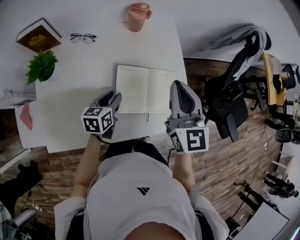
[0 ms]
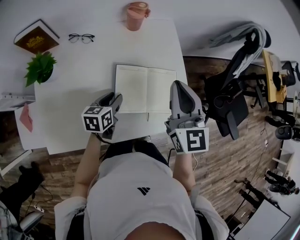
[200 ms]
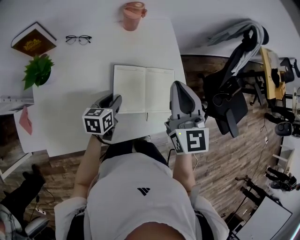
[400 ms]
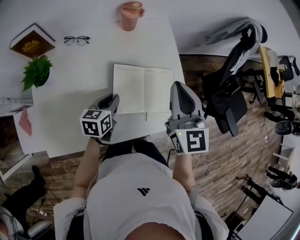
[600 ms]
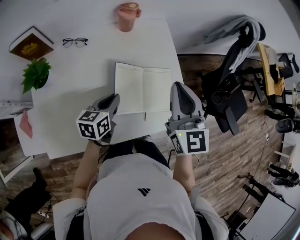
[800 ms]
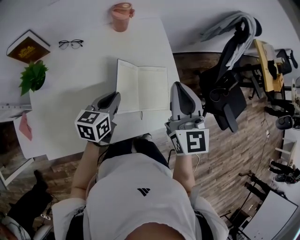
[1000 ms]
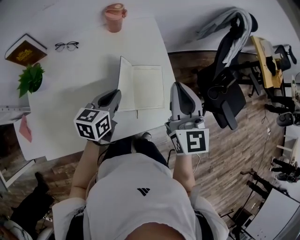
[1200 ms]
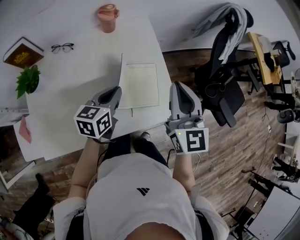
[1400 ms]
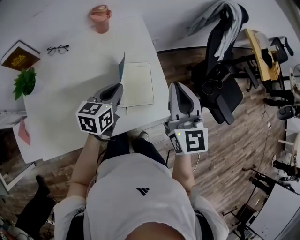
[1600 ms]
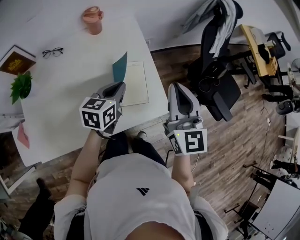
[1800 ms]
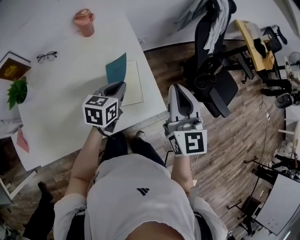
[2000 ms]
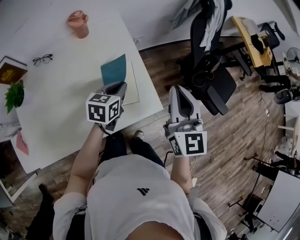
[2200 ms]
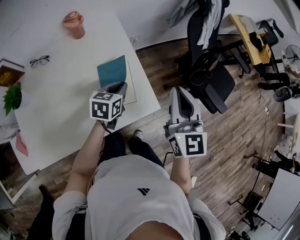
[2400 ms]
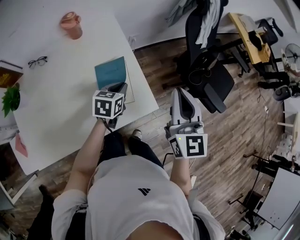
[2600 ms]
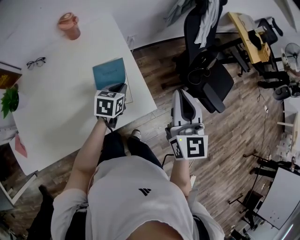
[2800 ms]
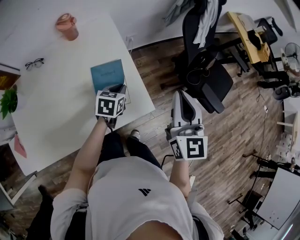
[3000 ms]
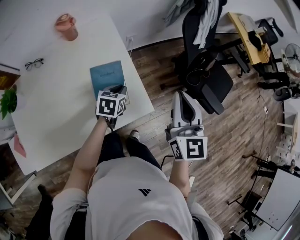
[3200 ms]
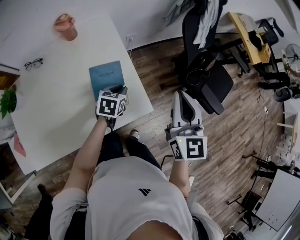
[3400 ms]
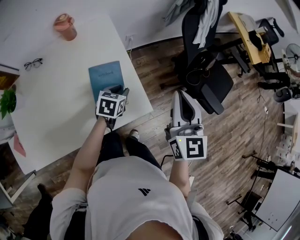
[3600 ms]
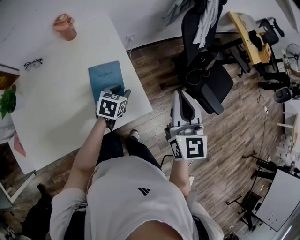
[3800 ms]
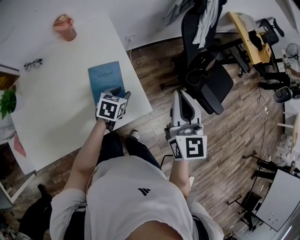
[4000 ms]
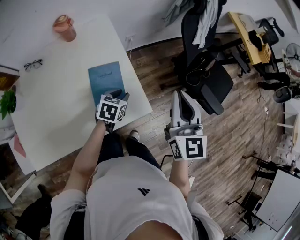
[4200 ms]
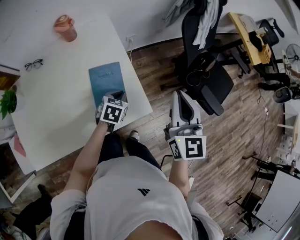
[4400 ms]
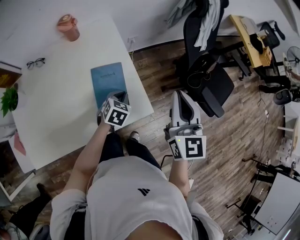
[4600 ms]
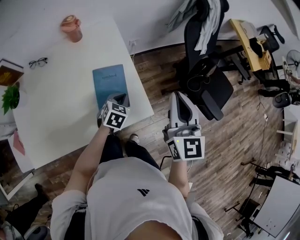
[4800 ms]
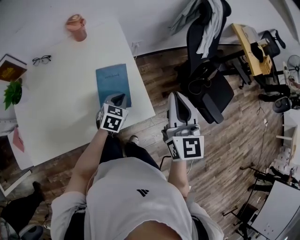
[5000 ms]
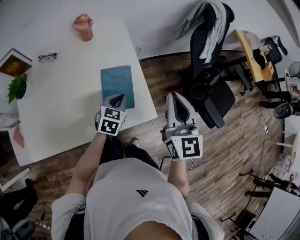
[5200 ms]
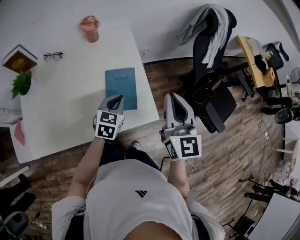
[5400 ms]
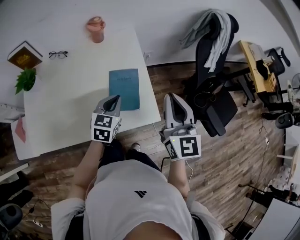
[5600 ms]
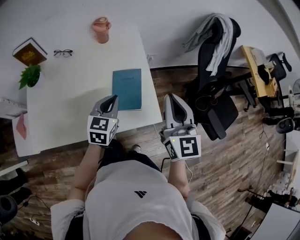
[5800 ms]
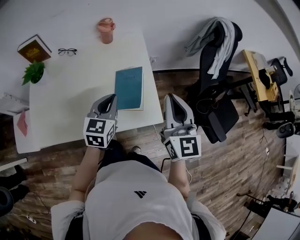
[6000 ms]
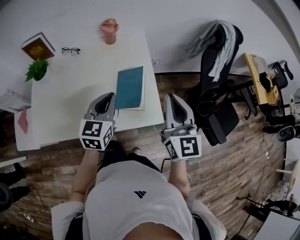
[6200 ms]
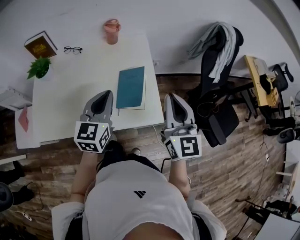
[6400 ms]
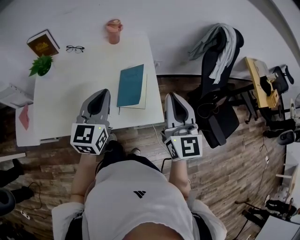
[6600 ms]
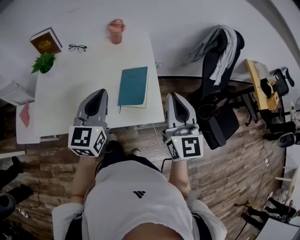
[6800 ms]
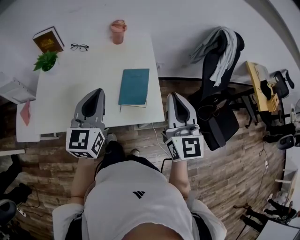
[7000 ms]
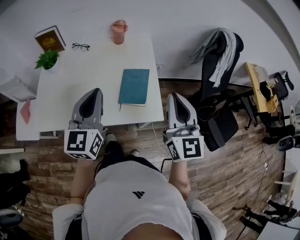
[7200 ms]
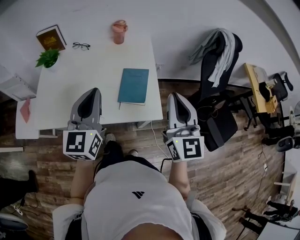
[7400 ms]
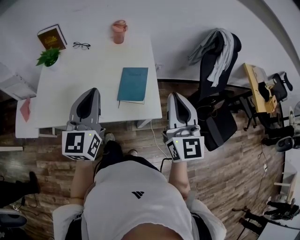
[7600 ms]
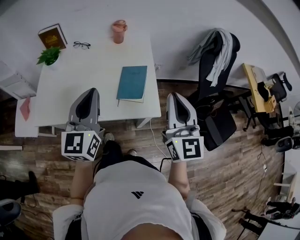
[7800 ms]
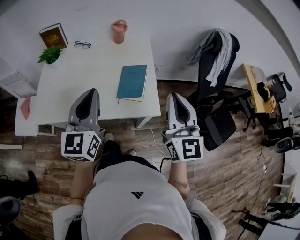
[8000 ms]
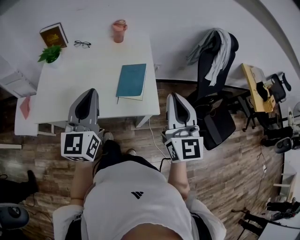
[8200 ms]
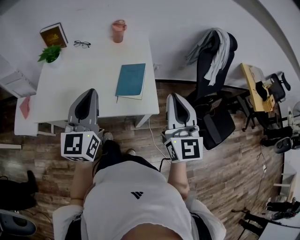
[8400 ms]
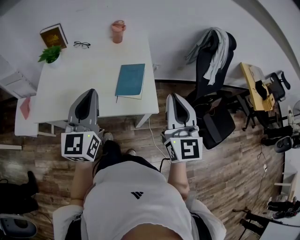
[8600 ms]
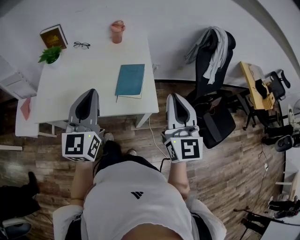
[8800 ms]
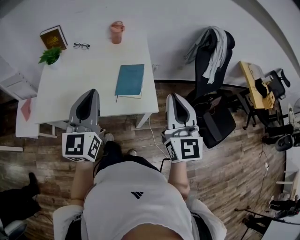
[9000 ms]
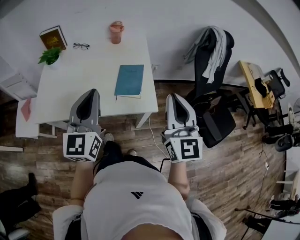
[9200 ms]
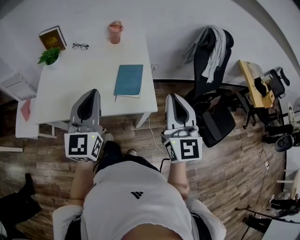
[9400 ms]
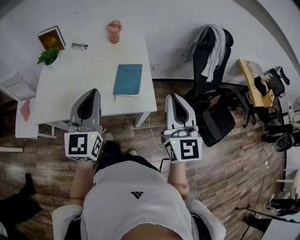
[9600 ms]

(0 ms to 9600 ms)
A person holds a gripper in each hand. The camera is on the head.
0 ms - 1600 ms: The right gripper is displaced to the right by some 10 cm. The left gripper moves to the right and upward, some 15 cm, and closes.
1600 ms - 3200 ms: The right gripper goes approximately 15 cm to the right. Meanwhile the left gripper goes approximately 20 cm to the right, downward and forward, and swivels roughly 20 degrees.
3200 ms - 4800 ms: The left gripper opens, then closes again.
4800 ms - 6400 ms: The left gripper is displaced upward and to the left by some 25 cm, and tilts its fingers some 30 degrees upward. The right gripper heads to the left, covering about 10 cm.
6400 ms - 8000 ms: The left gripper travels backward and upward by roughly 15 cm; the right gripper goes about 10 cm backward.
8000 ms - 9600 ms: The grippers stay close to where they were, moving slightly.

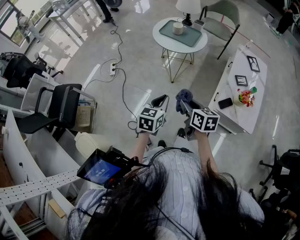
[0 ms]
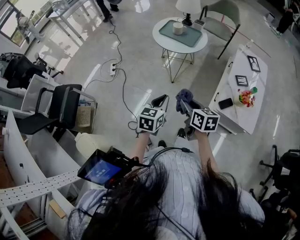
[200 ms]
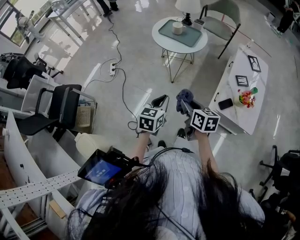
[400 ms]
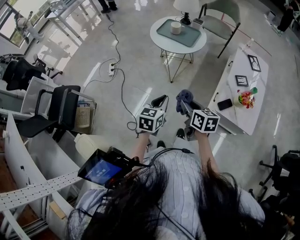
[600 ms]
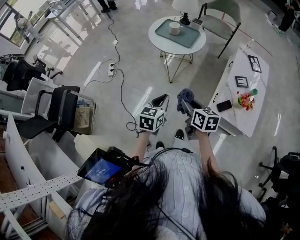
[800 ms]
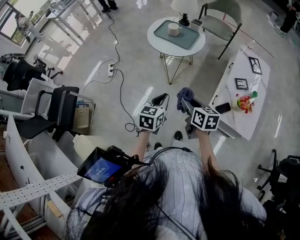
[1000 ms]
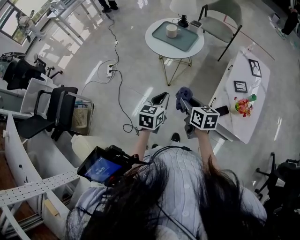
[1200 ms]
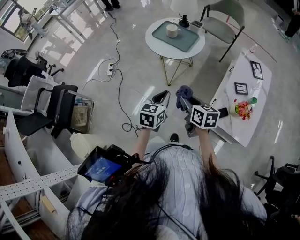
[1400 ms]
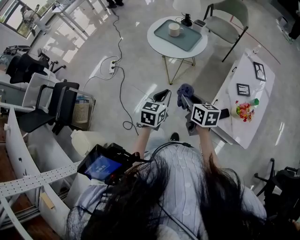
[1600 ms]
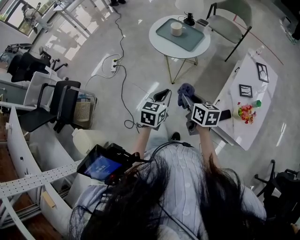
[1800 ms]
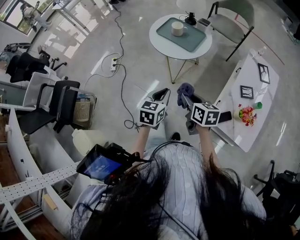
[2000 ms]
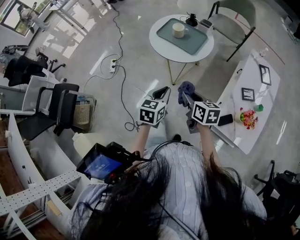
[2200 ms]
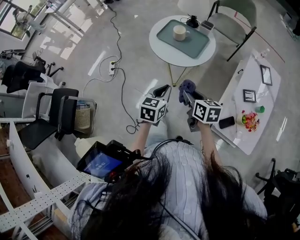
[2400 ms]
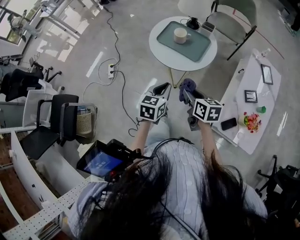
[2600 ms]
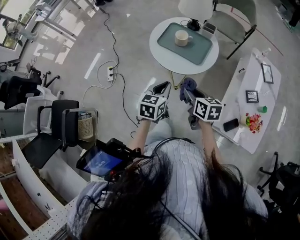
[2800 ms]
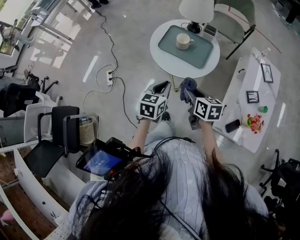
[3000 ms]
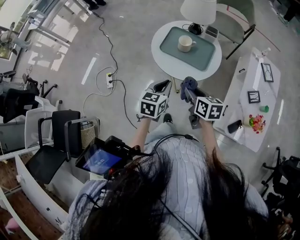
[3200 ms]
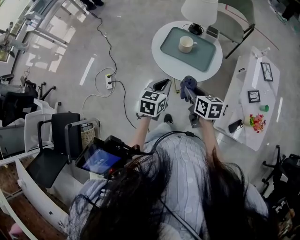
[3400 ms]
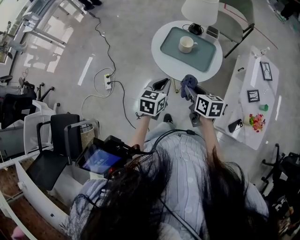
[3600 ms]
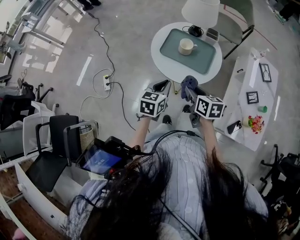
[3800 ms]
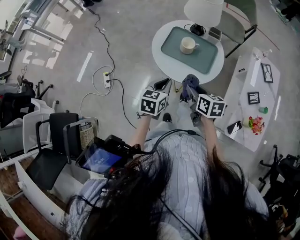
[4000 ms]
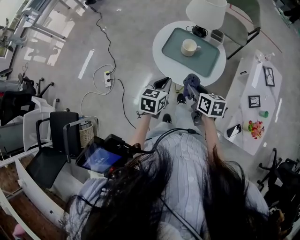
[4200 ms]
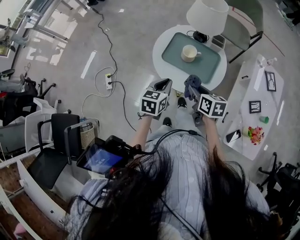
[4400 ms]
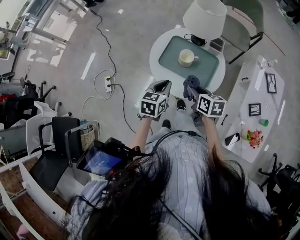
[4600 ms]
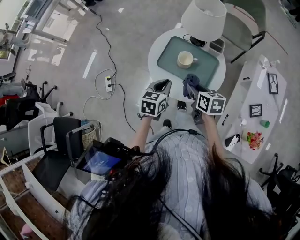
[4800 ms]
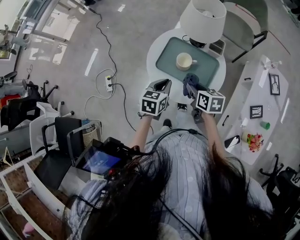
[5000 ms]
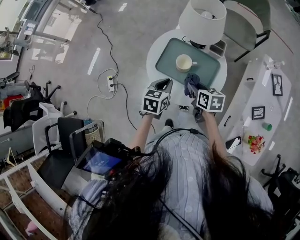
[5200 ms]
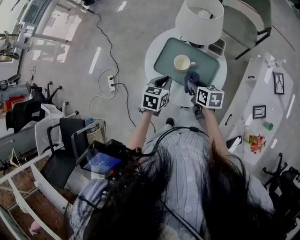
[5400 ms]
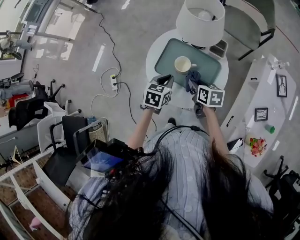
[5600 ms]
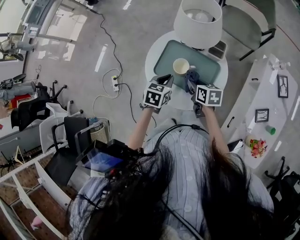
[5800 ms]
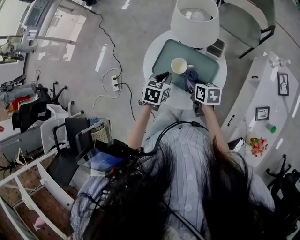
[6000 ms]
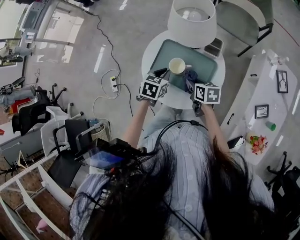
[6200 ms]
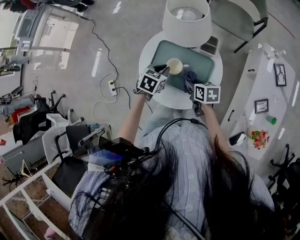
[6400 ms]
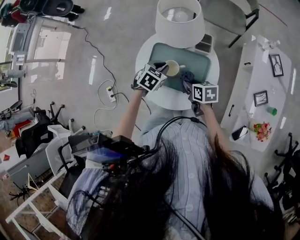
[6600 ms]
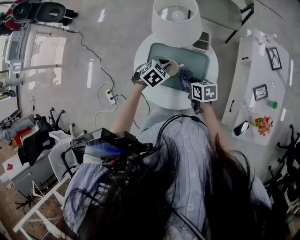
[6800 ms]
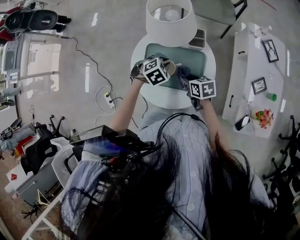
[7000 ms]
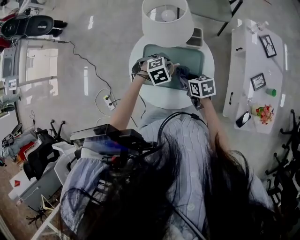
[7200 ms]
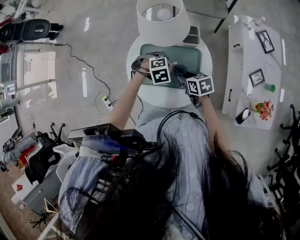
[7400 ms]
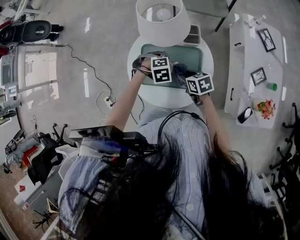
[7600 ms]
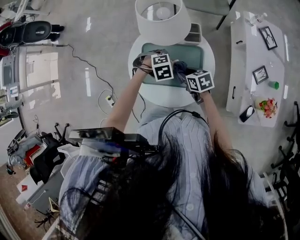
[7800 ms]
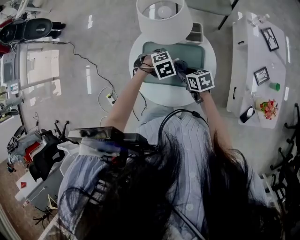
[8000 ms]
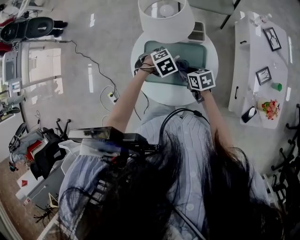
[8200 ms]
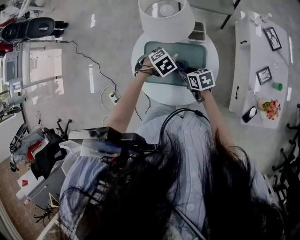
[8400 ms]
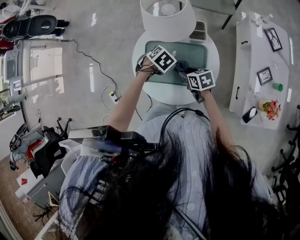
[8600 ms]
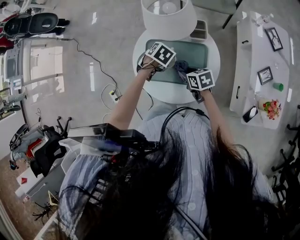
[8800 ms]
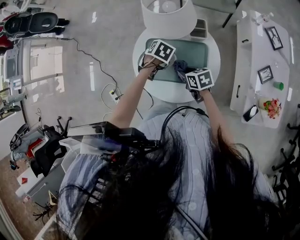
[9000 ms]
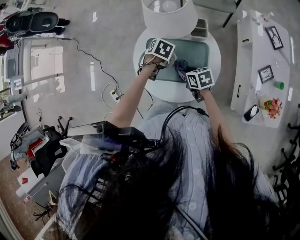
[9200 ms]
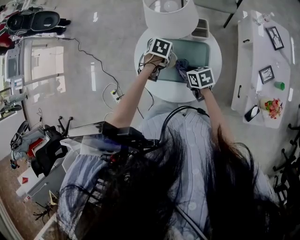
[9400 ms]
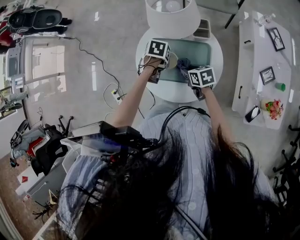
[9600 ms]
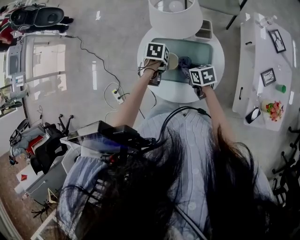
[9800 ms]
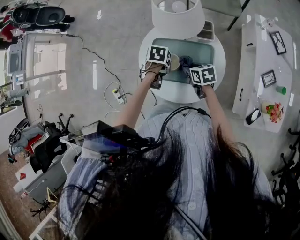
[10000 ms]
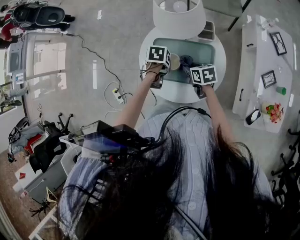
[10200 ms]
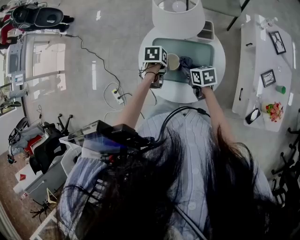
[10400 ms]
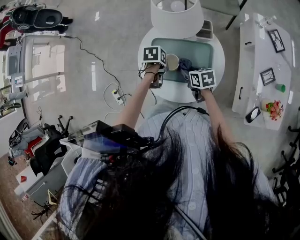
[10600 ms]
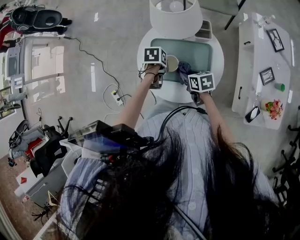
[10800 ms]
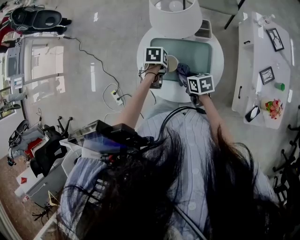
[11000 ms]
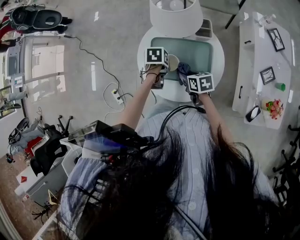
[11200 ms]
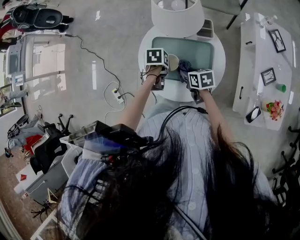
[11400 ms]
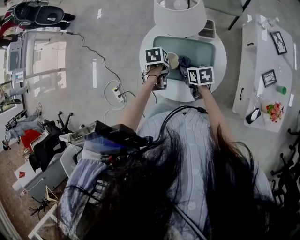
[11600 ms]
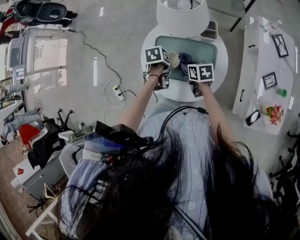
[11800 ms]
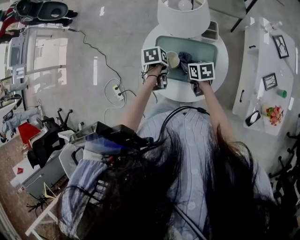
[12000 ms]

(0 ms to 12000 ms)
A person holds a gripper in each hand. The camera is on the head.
0 ms - 1600 ms: Both grippers travel together forward and to the right, approximately 15 cm.
1600 ms - 3000 ms: Both grippers travel together forward, roughly 25 cm.
3000 ms - 4400 ms: Both grippers travel together forward, about 10 cm.
4400 ms - 6000 ms: The left gripper is displaced forward, to the right and downward by about 15 cm, while the right gripper shifts about 20 cm forward, downward and to the right.
6000 ms - 7600 ms: The left gripper changes place by roughly 10 cm, and rolls clockwise, seen from behind, by roughly 80 degrees.
7600 ms - 9000 ms: The left gripper ends up some 5 cm from where it was, and rolls counterclockwise, seen from behind, by approximately 60 degrees.
9000 ms - 10400 ms: The left gripper ends up some 5 cm from where it was, and changes its angle by roughly 30 degrees.
10400 ms - 12000 ms: The grippers move only a little.

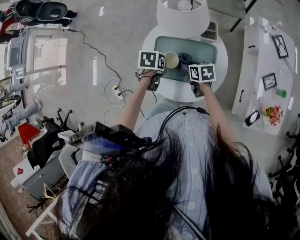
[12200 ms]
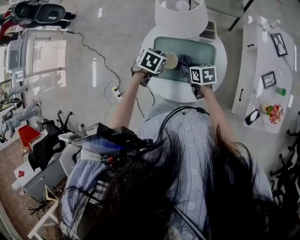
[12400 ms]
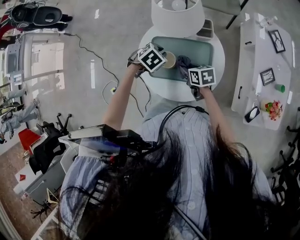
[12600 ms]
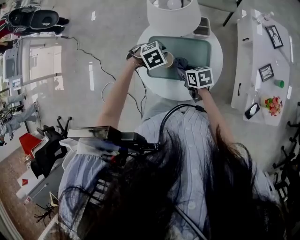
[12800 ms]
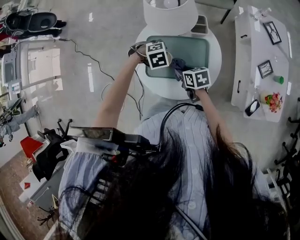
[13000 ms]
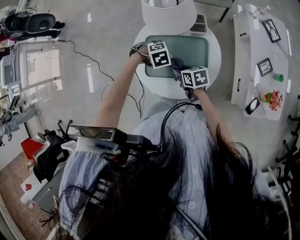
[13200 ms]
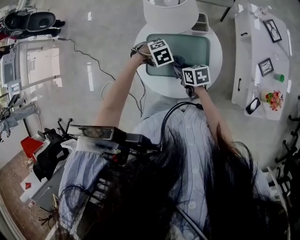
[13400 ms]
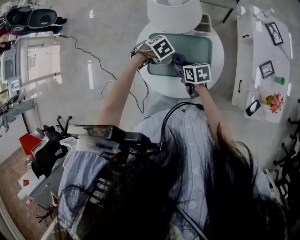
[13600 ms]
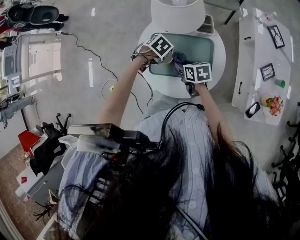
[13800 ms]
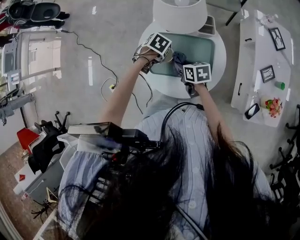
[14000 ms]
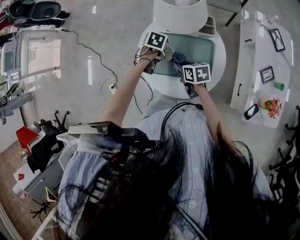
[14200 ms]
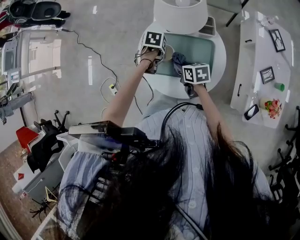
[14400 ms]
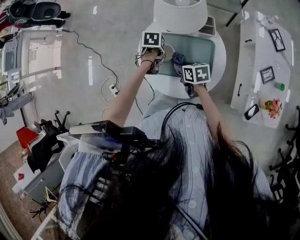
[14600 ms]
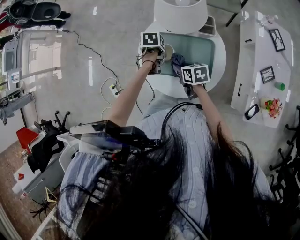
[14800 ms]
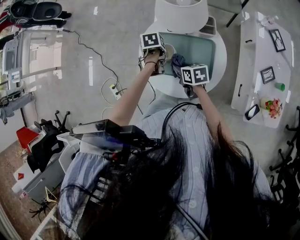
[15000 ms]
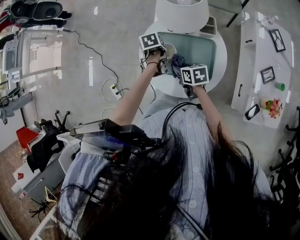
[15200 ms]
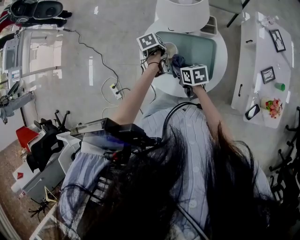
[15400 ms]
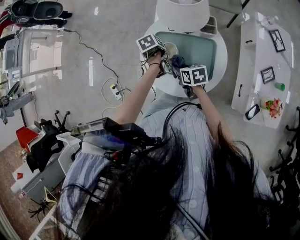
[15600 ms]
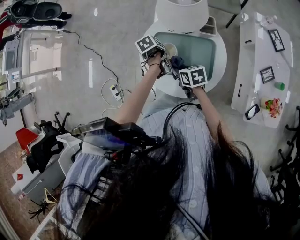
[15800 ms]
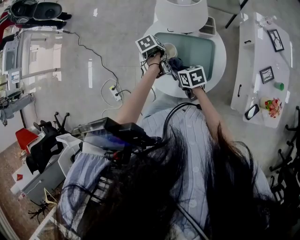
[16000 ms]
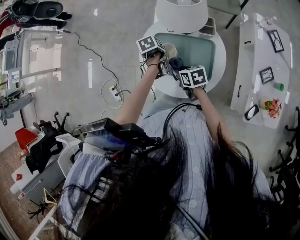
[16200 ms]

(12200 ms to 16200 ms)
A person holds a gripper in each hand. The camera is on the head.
12200 ms - 13600 ms: The left gripper shifts by some 5 cm, and rolls clockwise, seen from behind, by roughly 50 degrees.
13600 ms - 14800 ms: The left gripper ends up some 5 cm from where it was, and rolls counterclockwise, seen from behind, by some 60 degrees.
14800 ms - 16200 ms: The left gripper rotates some 20 degrees.
